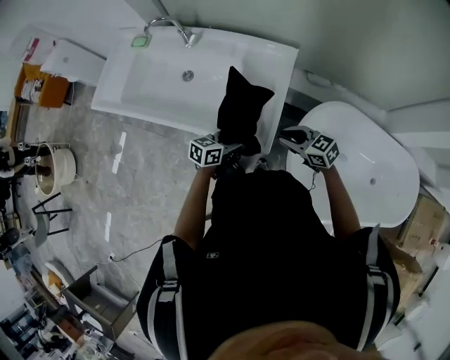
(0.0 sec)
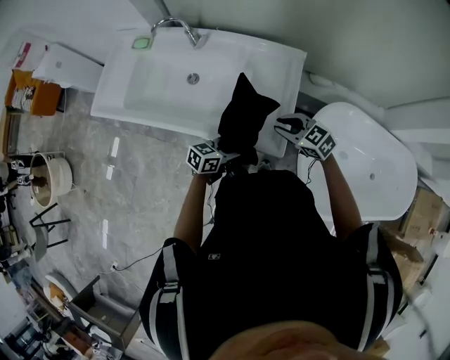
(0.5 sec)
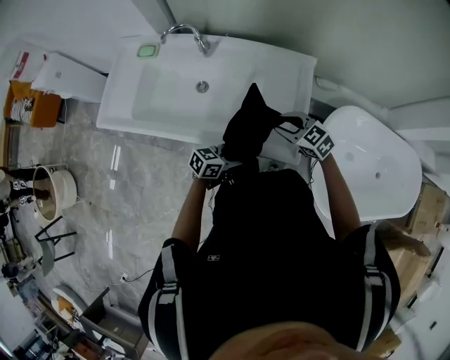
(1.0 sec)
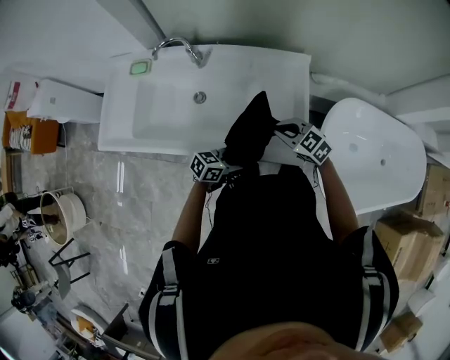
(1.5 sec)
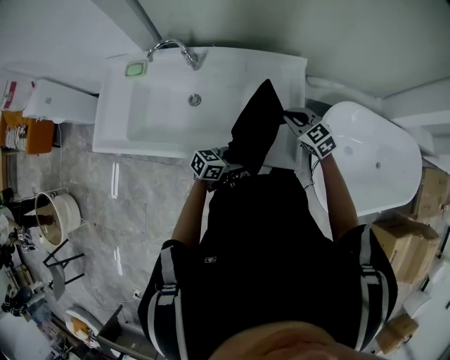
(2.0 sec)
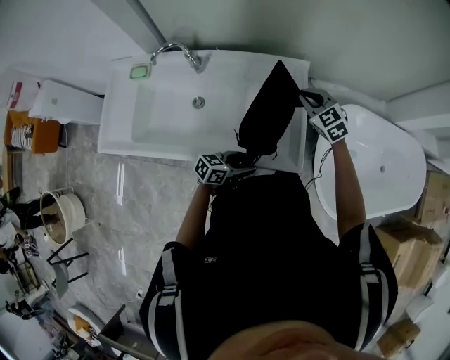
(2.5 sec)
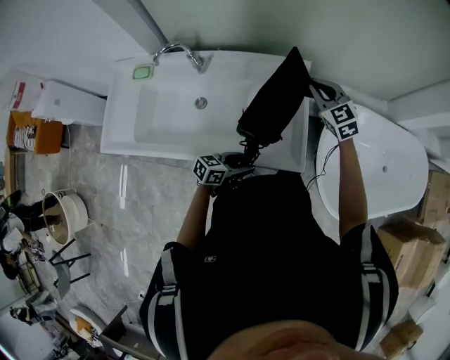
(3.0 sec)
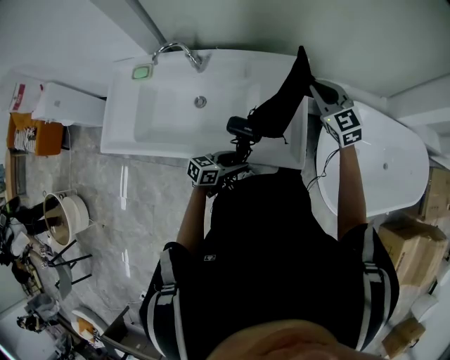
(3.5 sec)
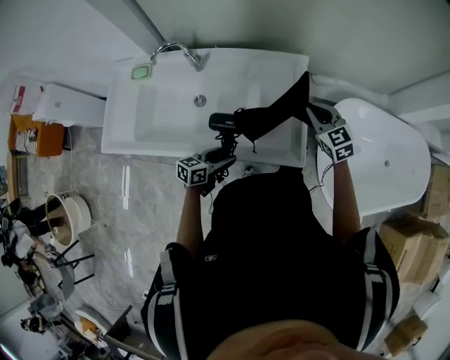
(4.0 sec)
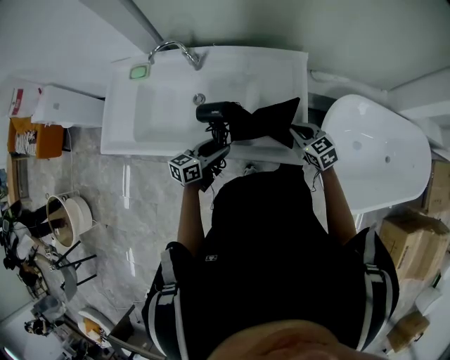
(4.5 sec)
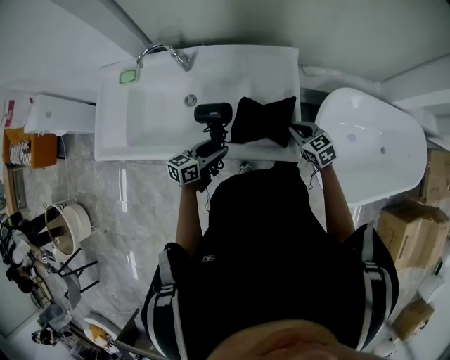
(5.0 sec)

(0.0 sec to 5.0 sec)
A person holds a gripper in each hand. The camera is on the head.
0.0 sec - 2.5 sec: The left gripper shifts by some 10 cm, and changes its angle by roughly 30 degrees; the right gripper moves approximately 20 cm, and rotates roughly 40 degrees.
2.5 sec - 5.0 sec: The right gripper goes some 15 cm backward and downward, and changes its angle by approximately 20 degrees. Meanwhile the left gripper is displaced to the left by approximately 10 cm, and changes its angle by roughly 20 degrees.

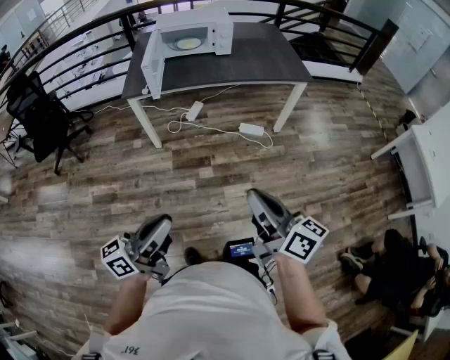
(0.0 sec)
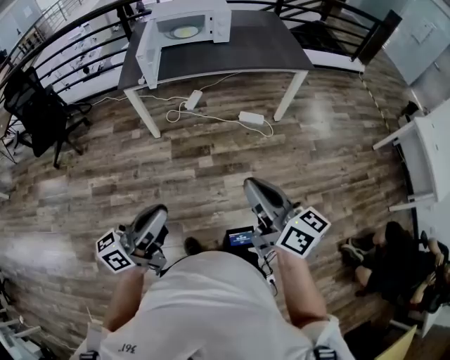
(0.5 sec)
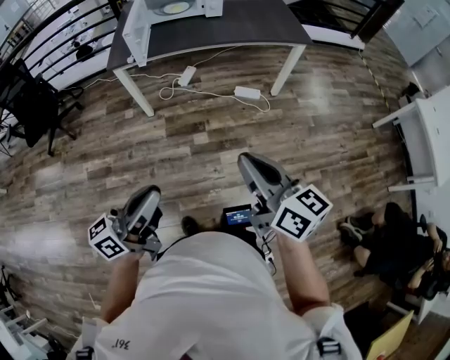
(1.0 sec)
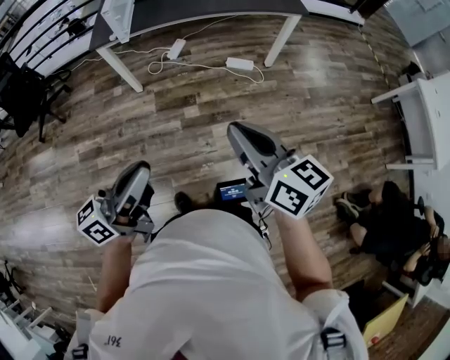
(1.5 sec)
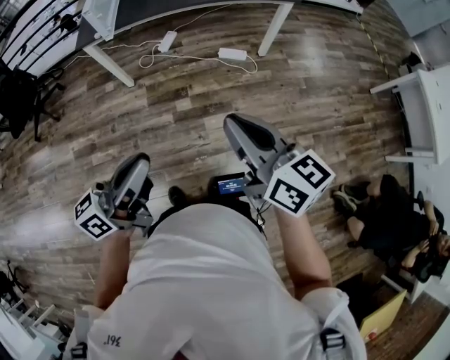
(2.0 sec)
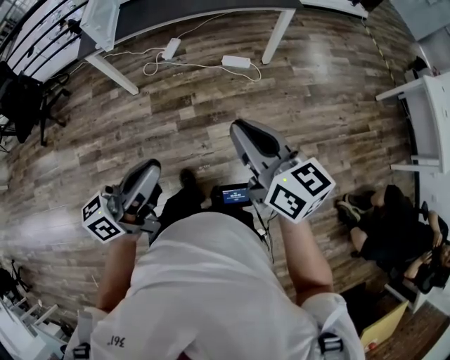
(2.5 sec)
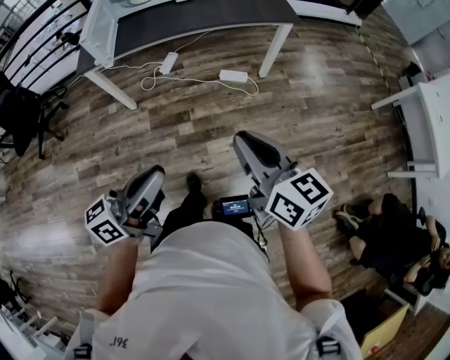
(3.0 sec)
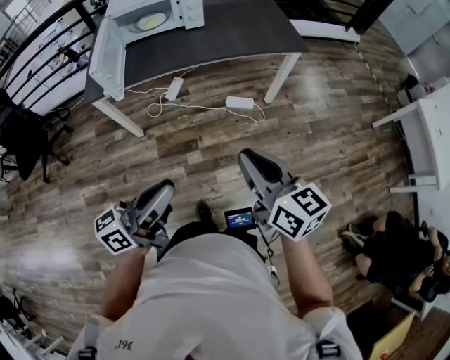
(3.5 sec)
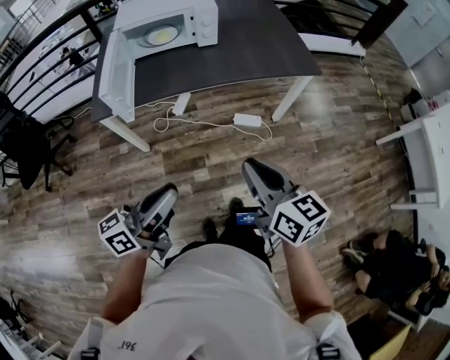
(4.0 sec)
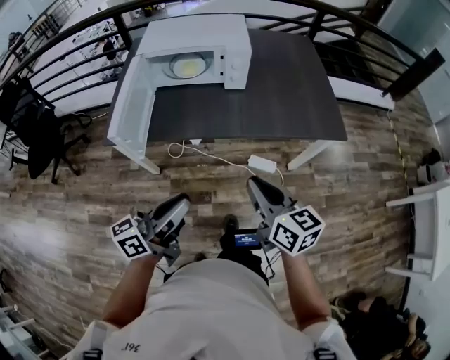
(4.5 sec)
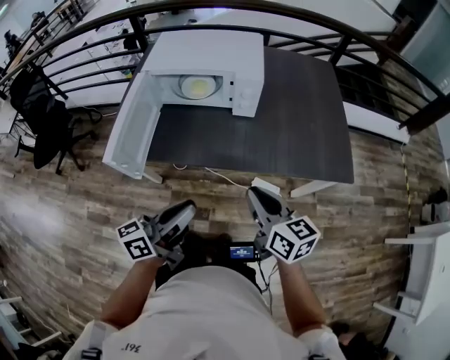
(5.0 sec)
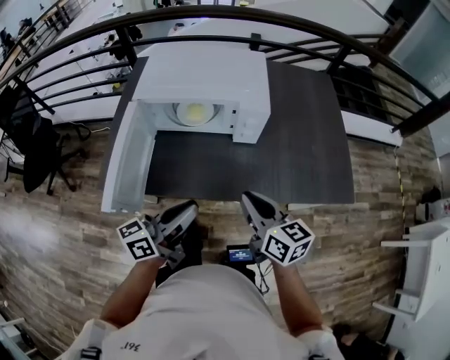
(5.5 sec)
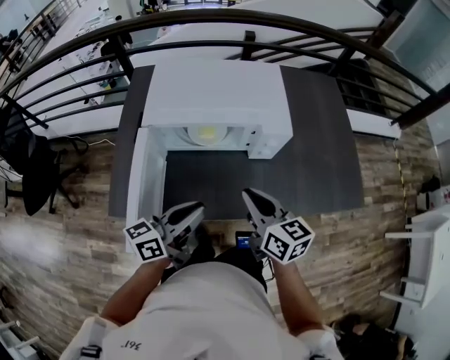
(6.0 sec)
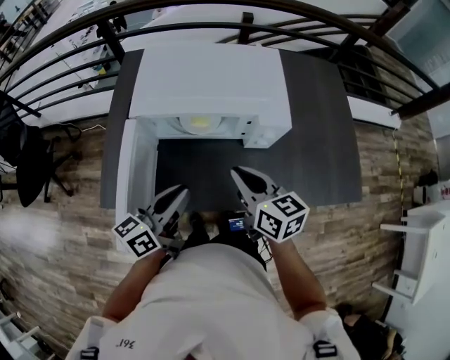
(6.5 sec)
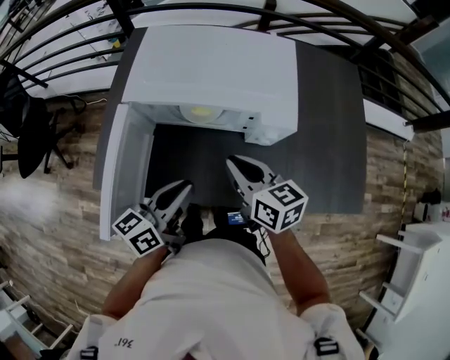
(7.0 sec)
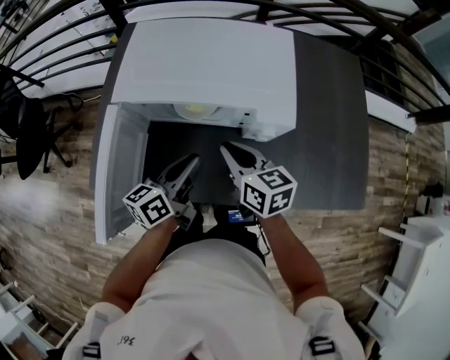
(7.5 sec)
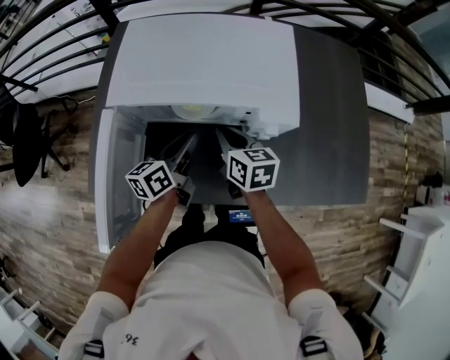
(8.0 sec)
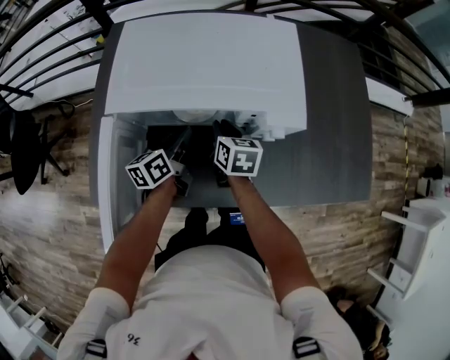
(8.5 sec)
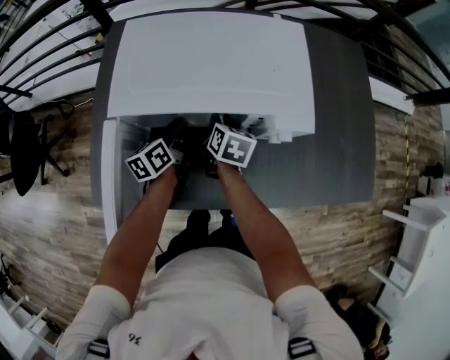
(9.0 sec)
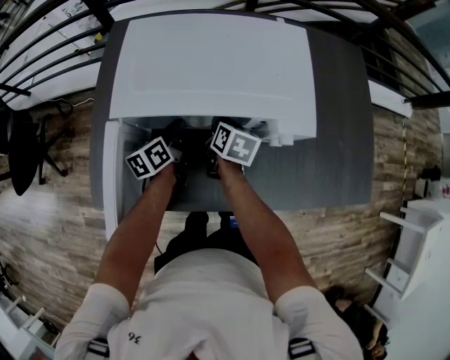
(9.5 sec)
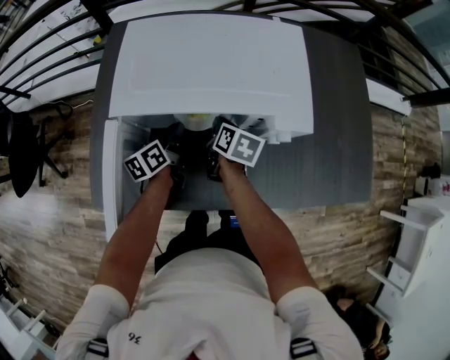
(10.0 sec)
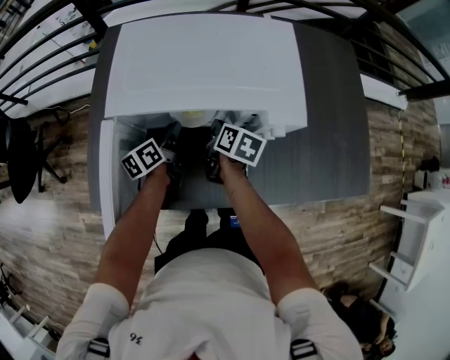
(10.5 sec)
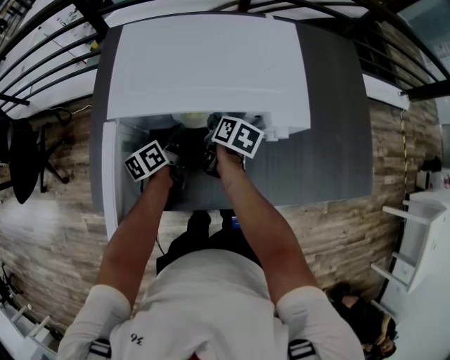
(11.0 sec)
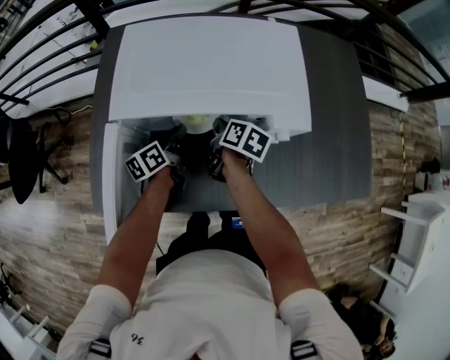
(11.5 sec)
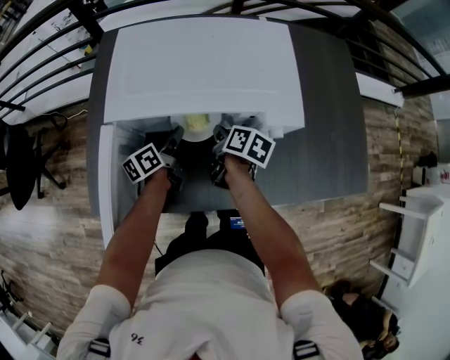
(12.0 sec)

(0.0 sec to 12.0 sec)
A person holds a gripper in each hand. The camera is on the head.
0.0 sec - 2.0 sec: Both grippers move to the right and forward, roughly 10 cm.
2.0 sec - 4.0 sec: Both grippers move forward, some 25 cm.
4.0 sec - 6.0 sec: The two grippers travel together, forward, roughly 50 cm.
6.0 sec - 8.0 sec: Both grippers move forward and downward, some 20 cm. The left gripper turns by about 30 degrees.
8.0 sec - 10.0 sec: The right gripper shifts approximately 10 cm downward and forward, and swivels about 30 degrees, while the left gripper is displaced to the left, downward and forward by approximately 10 cm.
10.0 sec - 12.0 sec: The grippers stay close to where they were, moving slightly.

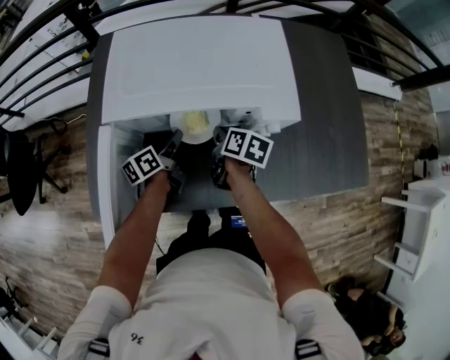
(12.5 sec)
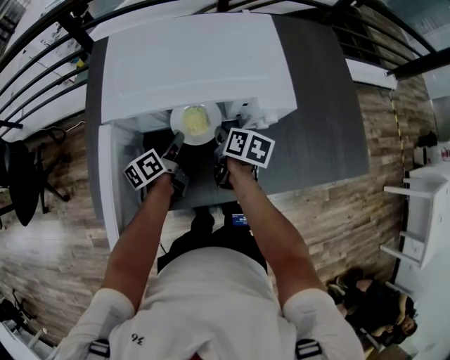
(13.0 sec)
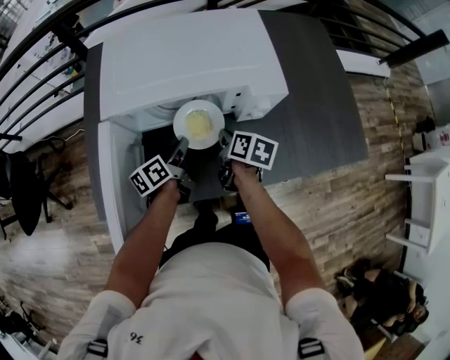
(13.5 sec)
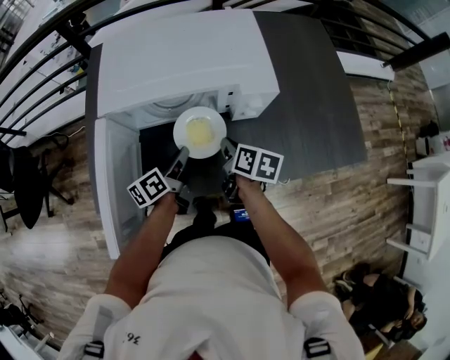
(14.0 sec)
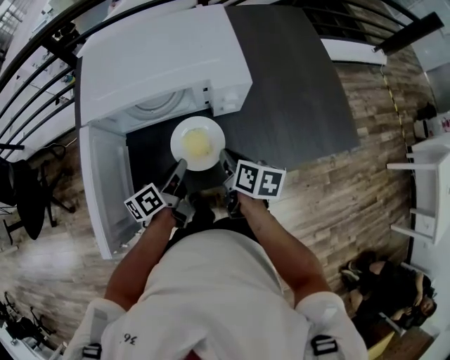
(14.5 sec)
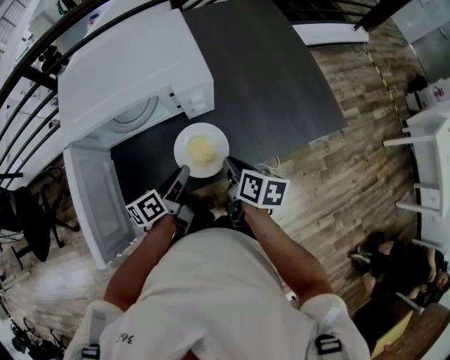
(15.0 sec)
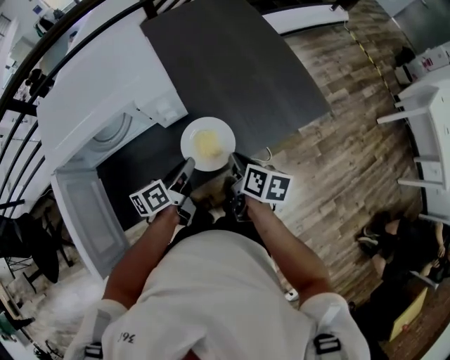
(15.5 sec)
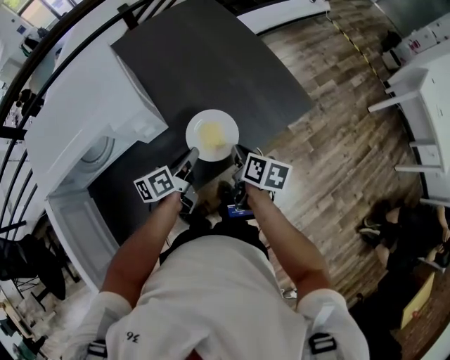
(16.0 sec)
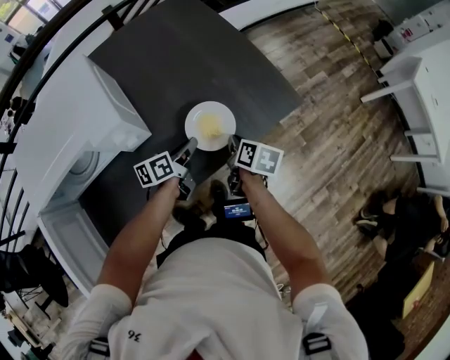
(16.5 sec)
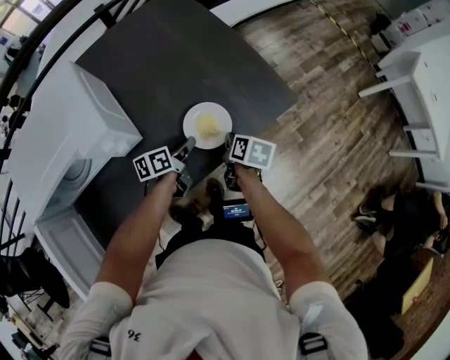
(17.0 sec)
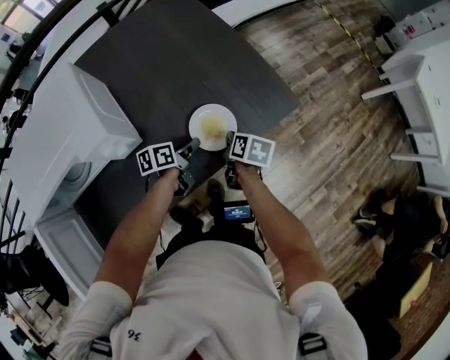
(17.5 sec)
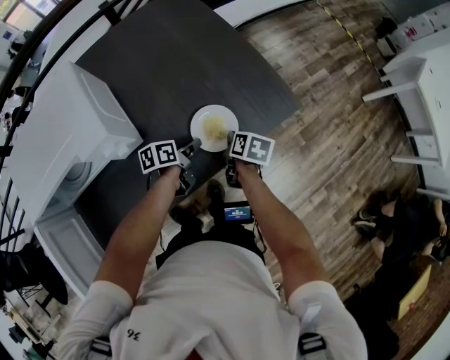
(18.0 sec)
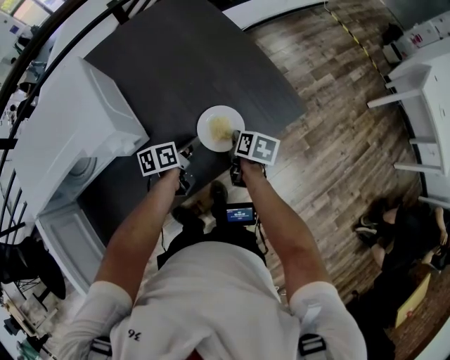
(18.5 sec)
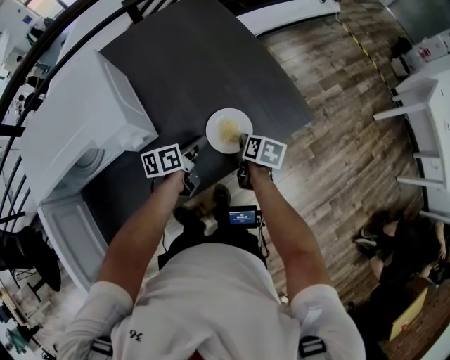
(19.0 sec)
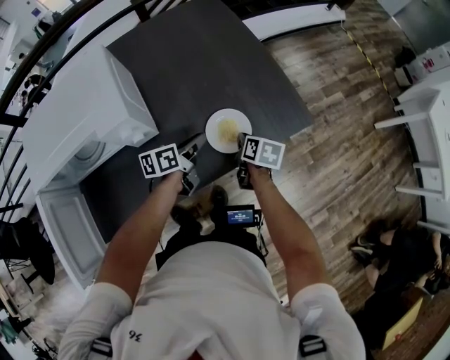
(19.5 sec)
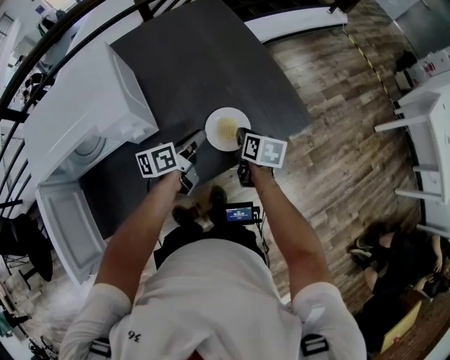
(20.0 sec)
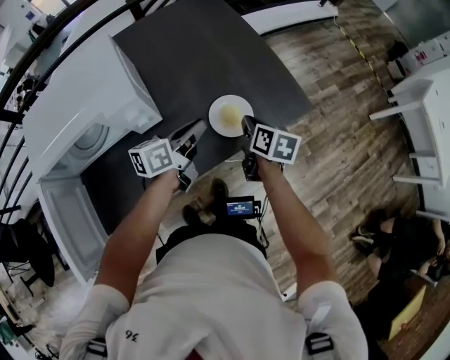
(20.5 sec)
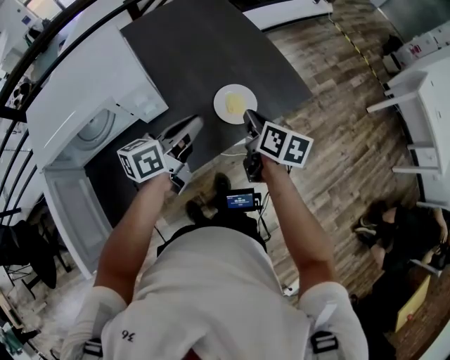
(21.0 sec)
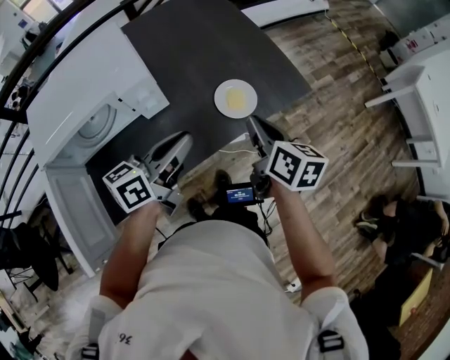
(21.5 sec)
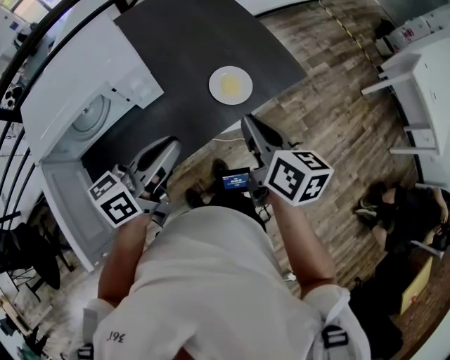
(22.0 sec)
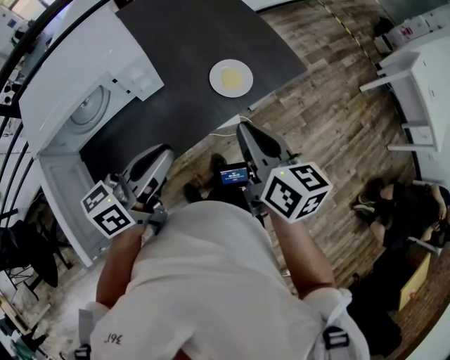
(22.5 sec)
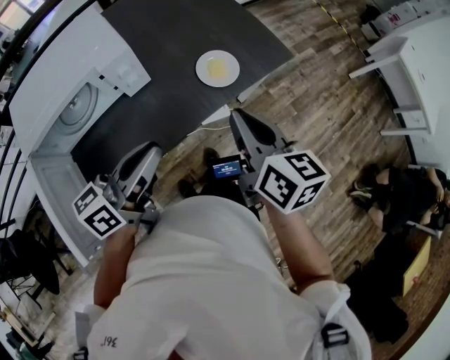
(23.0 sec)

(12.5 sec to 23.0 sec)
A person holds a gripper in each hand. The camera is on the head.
12.5 sec - 14.5 sec: The two grippers go about 15 cm backward and to the right.
14.5 sec - 16.5 sec: The right gripper moves approximately 30 cm, and rotates roughly 30 degrees. The left gripper changes place by approximately 35 cm, and swivels about 30 degrees.
16.5 sec - 19.0 sec: The right gripper shifts some 10 cm downward and forward.
19.0 sec - 21.0 sec: The two grippers go some 20 cm upward and backward. The left gripper changes its angle by some 20 degrees.
21.0 sec - 23.0 sec: Both grippers travel together backward and upward, some 20 cm.
